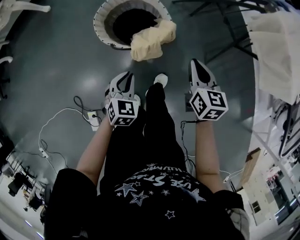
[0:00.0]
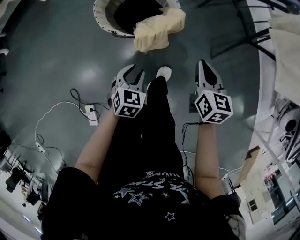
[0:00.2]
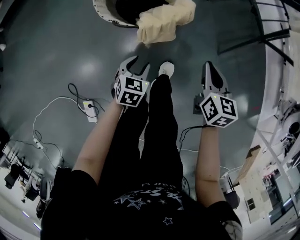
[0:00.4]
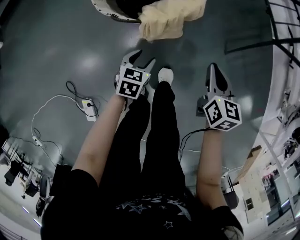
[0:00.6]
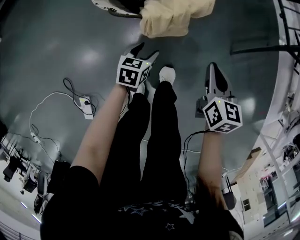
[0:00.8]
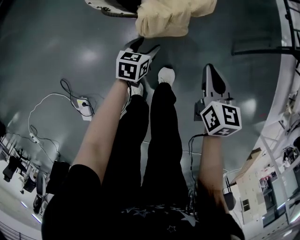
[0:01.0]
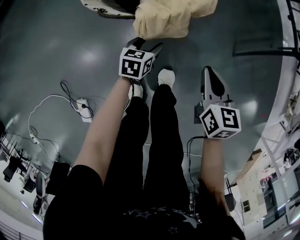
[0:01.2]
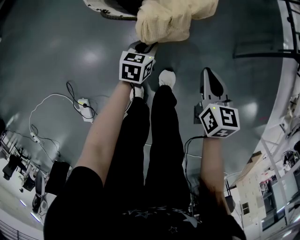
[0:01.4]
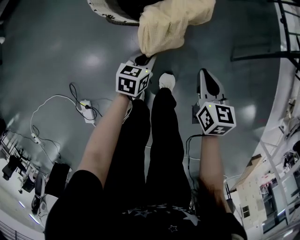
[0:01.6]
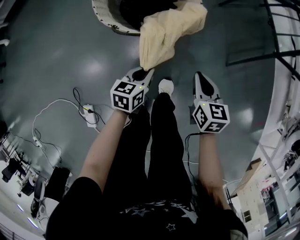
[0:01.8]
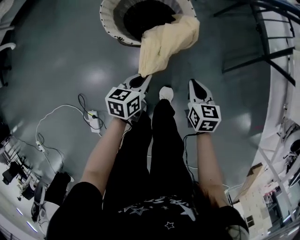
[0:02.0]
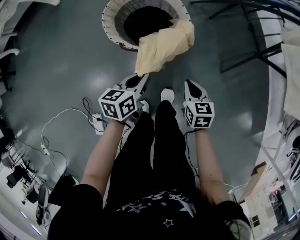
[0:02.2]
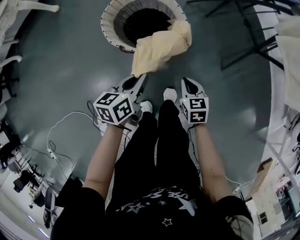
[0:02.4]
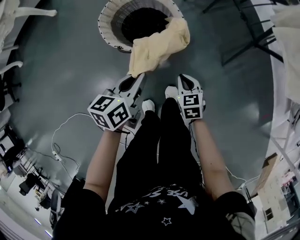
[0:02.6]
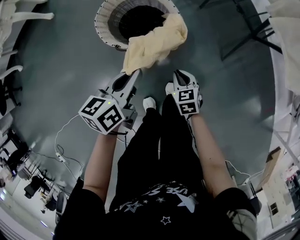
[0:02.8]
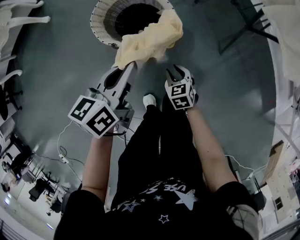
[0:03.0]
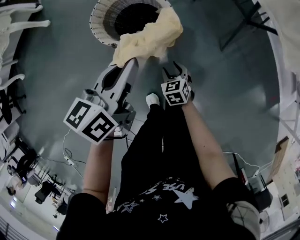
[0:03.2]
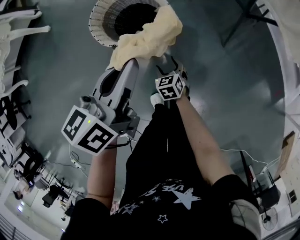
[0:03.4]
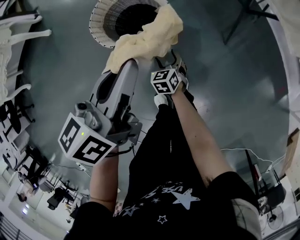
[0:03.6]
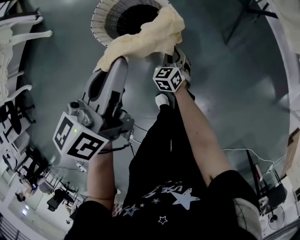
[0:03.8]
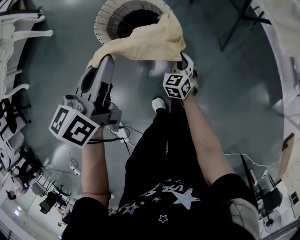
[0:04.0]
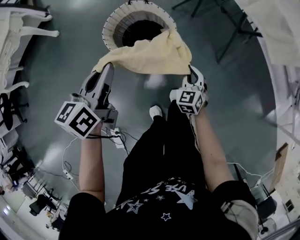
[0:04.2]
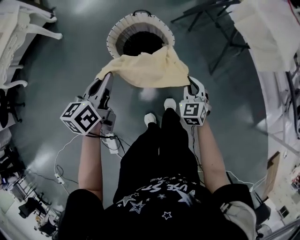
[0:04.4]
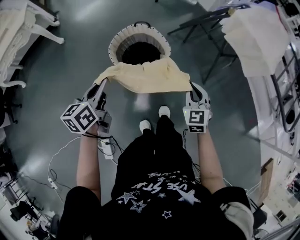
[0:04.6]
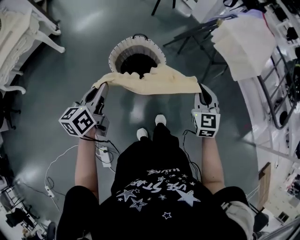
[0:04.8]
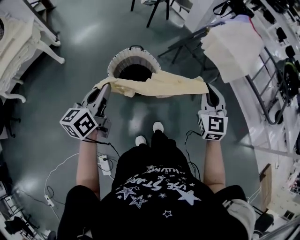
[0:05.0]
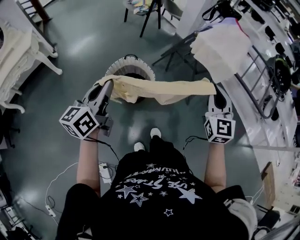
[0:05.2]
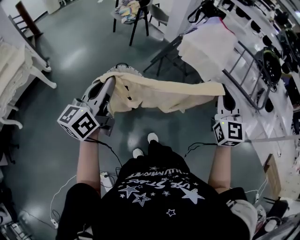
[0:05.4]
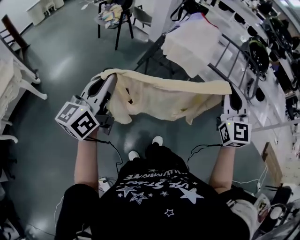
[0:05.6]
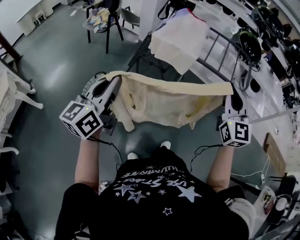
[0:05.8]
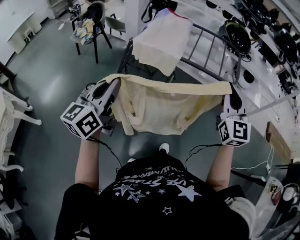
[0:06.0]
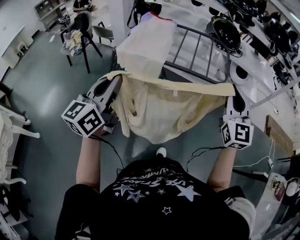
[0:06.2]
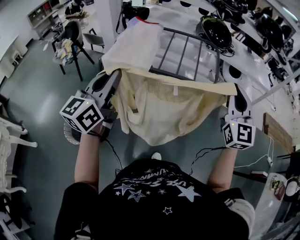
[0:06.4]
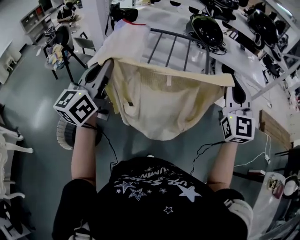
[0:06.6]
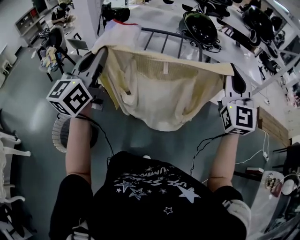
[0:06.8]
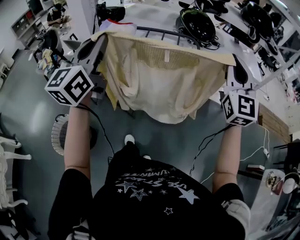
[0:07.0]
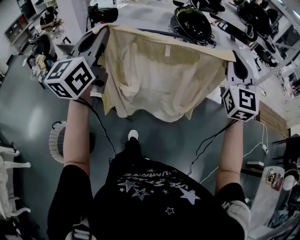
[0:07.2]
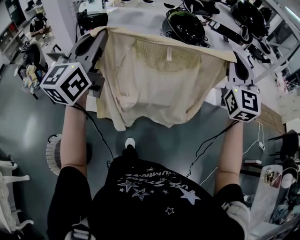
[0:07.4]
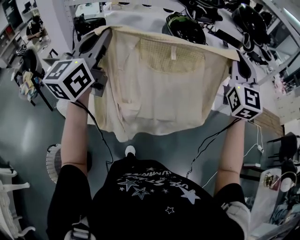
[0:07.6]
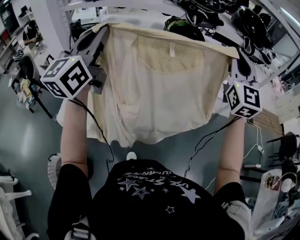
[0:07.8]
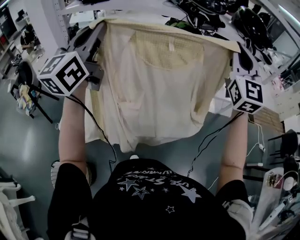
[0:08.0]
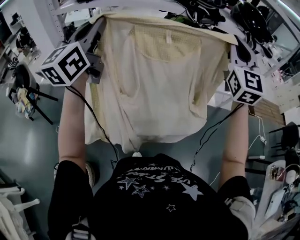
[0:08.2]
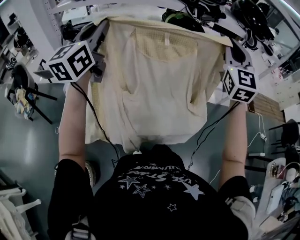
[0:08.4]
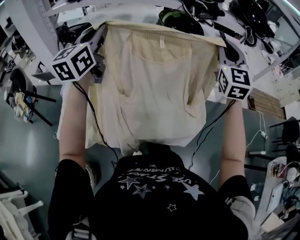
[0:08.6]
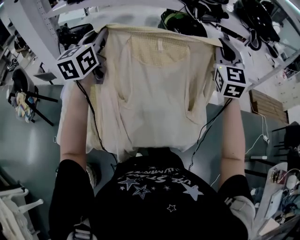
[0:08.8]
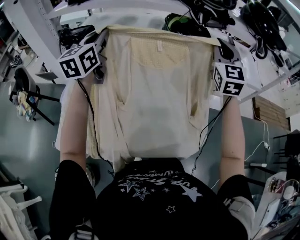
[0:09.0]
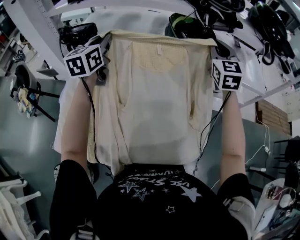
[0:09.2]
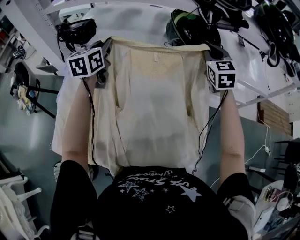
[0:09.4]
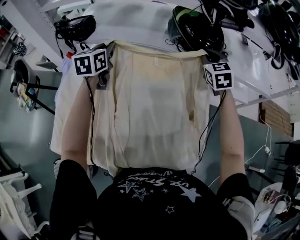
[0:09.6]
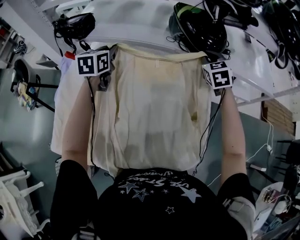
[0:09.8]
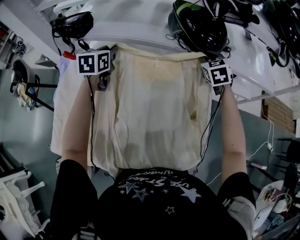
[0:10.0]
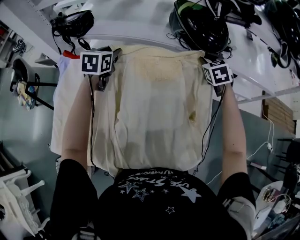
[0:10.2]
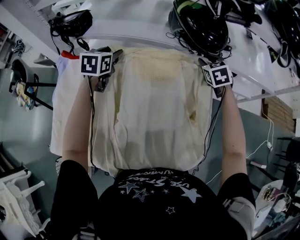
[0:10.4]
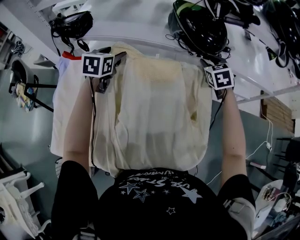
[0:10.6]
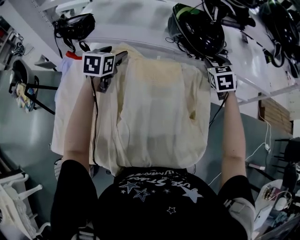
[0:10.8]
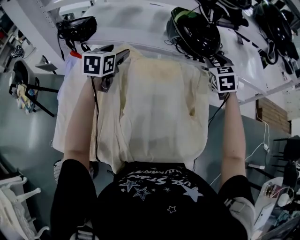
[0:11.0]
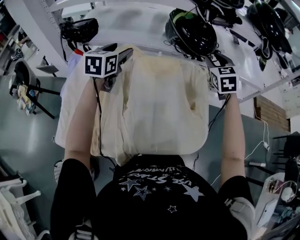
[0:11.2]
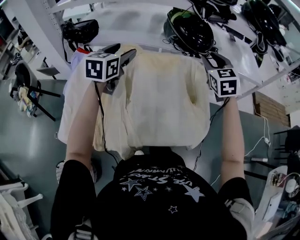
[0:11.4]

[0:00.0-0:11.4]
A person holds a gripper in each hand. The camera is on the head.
0:00.0 to 0:01.4: Both grippers travel together downward, roughly 30 cm. The left gripper swivels roughly 40 degrees, and opens, then closes once more.
0:01.4 to 0:02.8: The left gripper goes about 40 cm upward, and turns by about 20 degrees, while the right gripper moves upward and to the left, about 10 cm.
0:02.8 to 0:04.2: The left gripper moves upward and to the left, about 15 cm, while the right gripper shifts approximately 10 cm upward, swivels some 30 degrees, and opens, then closes once more.
0:04.2 to 0:05.6: The right gripper is displaced upward by approximately 60 cm, and tips its fingers upward by roughly 40 degrees; the left gripper moves upward, roughly 35 cm, and changes its angle by about 40 degrees.
0:05.6 to 0:07.2: Both grippers are carried to the right and forward, approximately 50 cm. The right gripper changes its angle by approximately 30 degrees, while the left gripper changes its angle by roughly 30 degrees.
0:07.2 to 0:08.6: Both grippers travel together forward, about 30 cm.
0:08.6 to 0:10.0: The two grippers go roughly 35 cm downward and forward. The left gripper points its fingers roughly 40 degrees further downward. Meanwhile the right gripper points its fingers roughly 40 degrees further downward.
0:10.0 to 0:11.4: Both grippers move backward and upward, about 20 cm. The left gripper opens, while the right gripper opens.

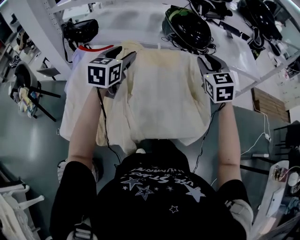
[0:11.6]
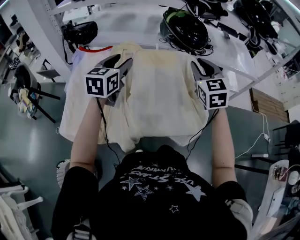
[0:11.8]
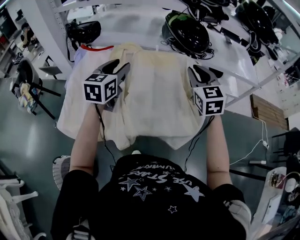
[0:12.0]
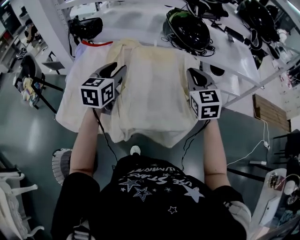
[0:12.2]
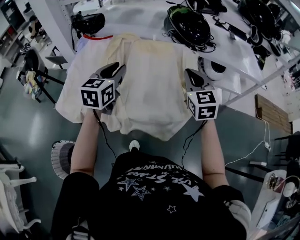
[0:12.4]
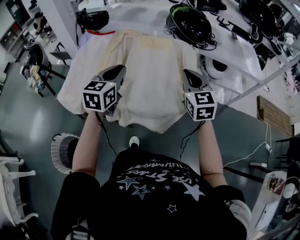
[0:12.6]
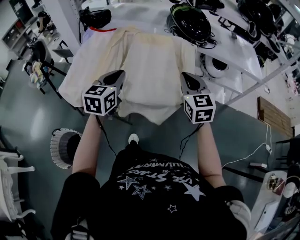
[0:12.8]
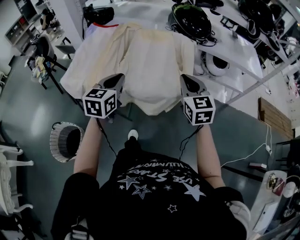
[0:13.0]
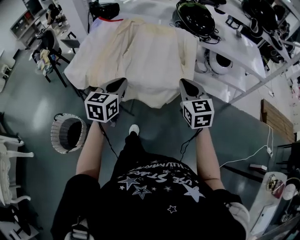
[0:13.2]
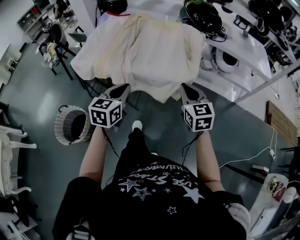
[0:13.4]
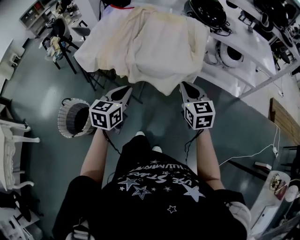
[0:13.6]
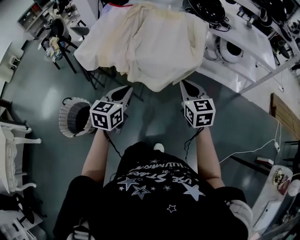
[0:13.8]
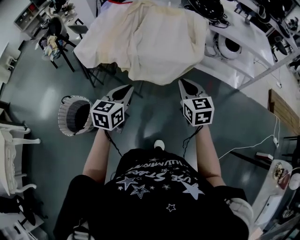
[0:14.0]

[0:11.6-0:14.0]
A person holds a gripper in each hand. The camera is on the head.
0:11.6 to 0:12.8: The two grippers go approximately 25 cm backward. The right gripper closes, while the left gripper closes its fingers.
0:12.8 to 0:14.0: The left gripper moves backward, about 25 cm. Meanwhile the right gripper goes approximately 20 cm backward and downward.

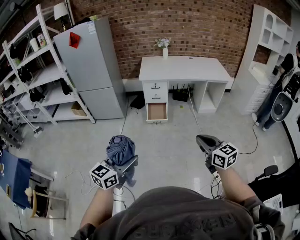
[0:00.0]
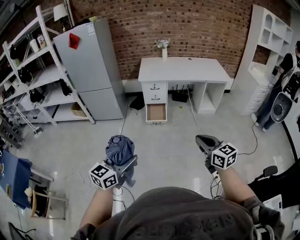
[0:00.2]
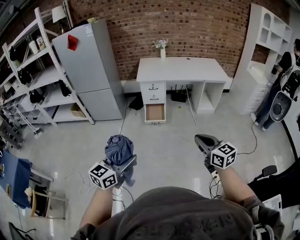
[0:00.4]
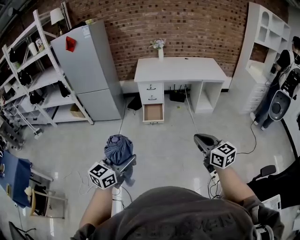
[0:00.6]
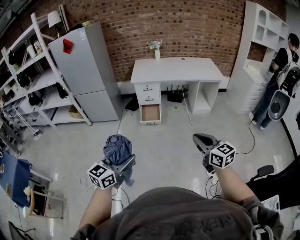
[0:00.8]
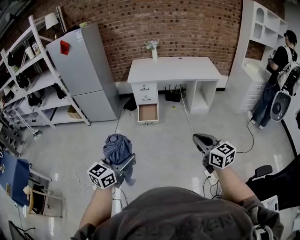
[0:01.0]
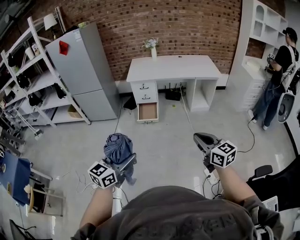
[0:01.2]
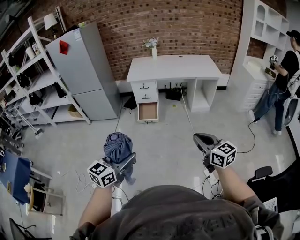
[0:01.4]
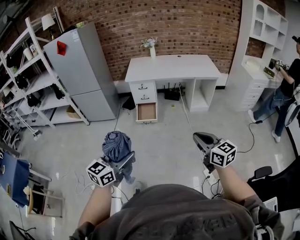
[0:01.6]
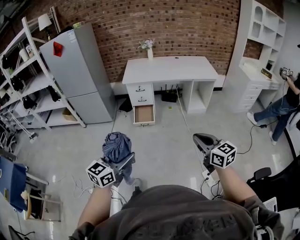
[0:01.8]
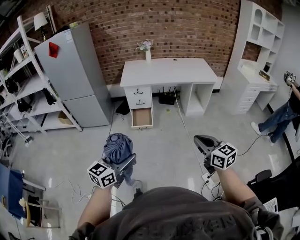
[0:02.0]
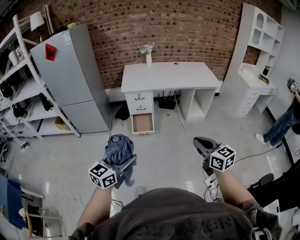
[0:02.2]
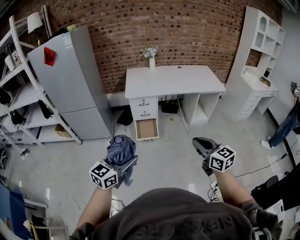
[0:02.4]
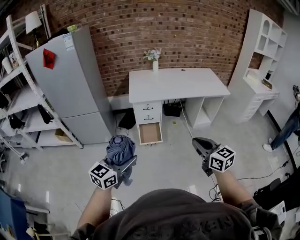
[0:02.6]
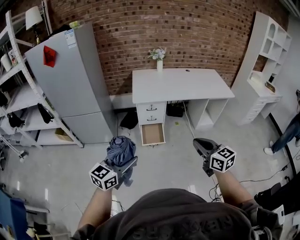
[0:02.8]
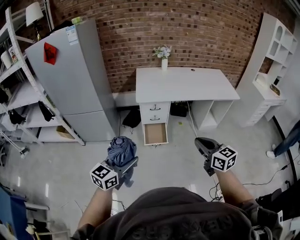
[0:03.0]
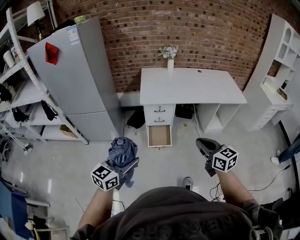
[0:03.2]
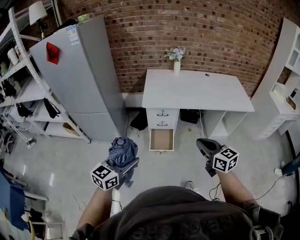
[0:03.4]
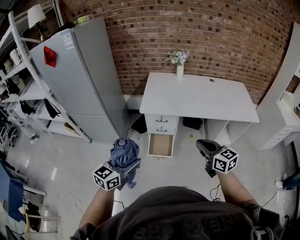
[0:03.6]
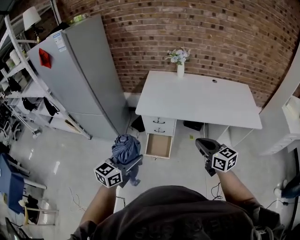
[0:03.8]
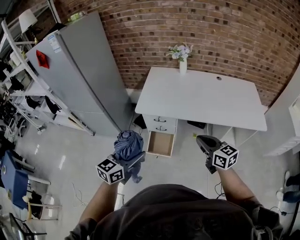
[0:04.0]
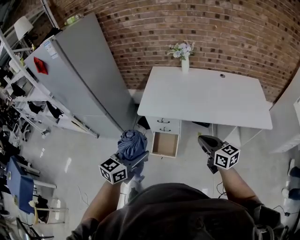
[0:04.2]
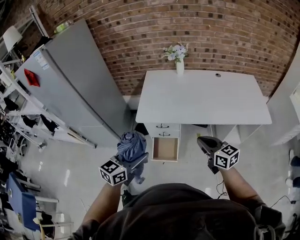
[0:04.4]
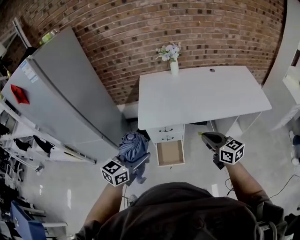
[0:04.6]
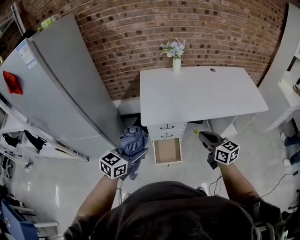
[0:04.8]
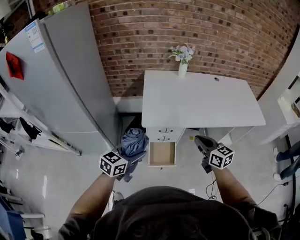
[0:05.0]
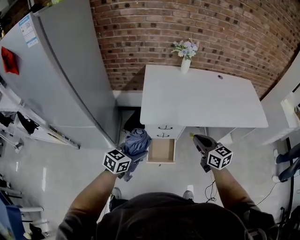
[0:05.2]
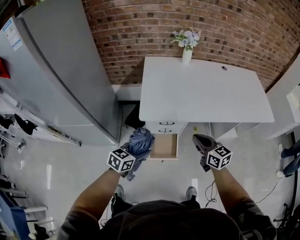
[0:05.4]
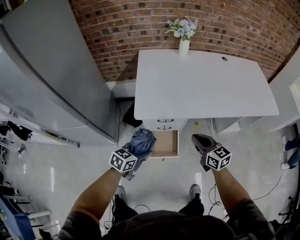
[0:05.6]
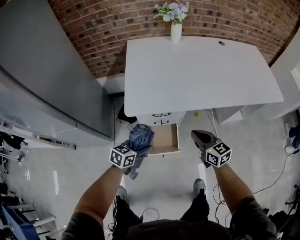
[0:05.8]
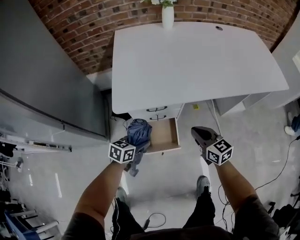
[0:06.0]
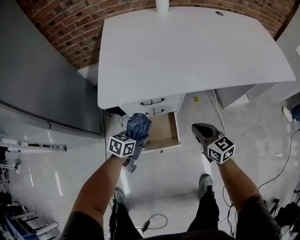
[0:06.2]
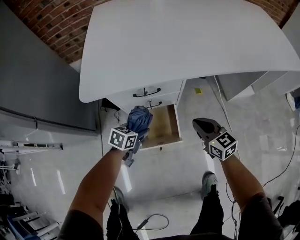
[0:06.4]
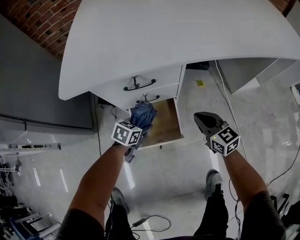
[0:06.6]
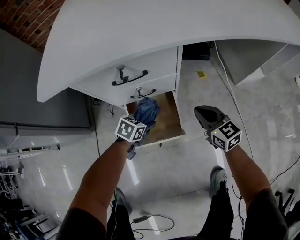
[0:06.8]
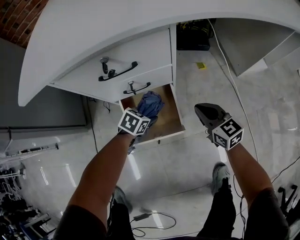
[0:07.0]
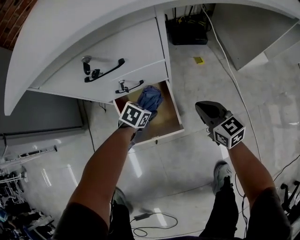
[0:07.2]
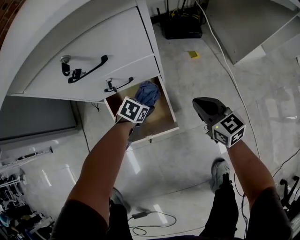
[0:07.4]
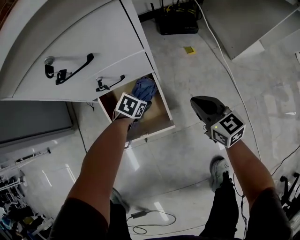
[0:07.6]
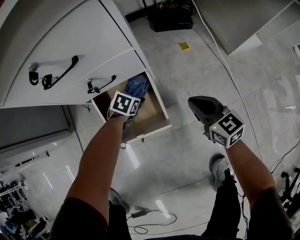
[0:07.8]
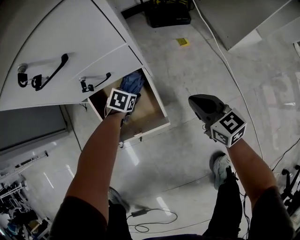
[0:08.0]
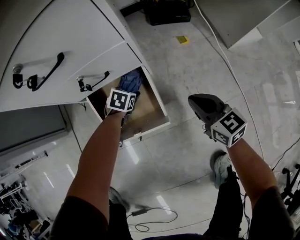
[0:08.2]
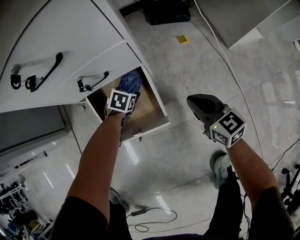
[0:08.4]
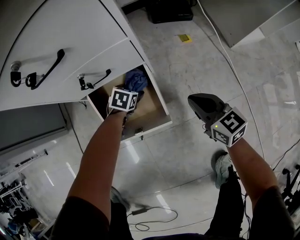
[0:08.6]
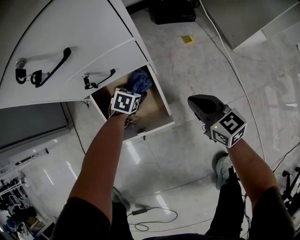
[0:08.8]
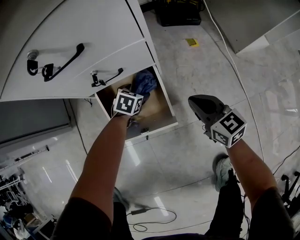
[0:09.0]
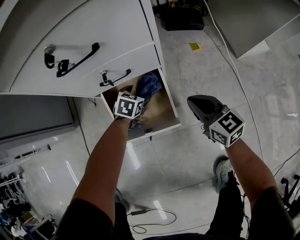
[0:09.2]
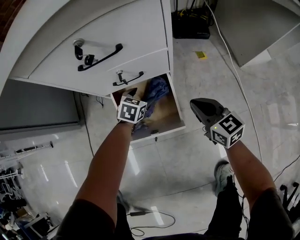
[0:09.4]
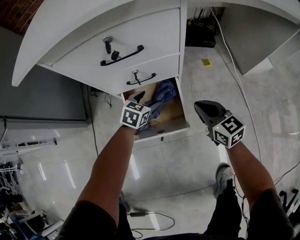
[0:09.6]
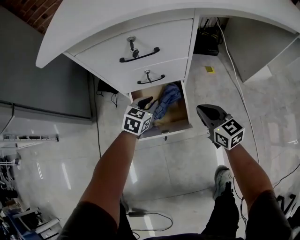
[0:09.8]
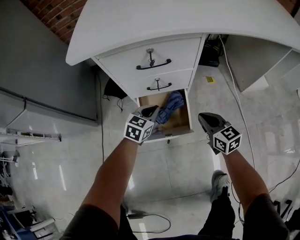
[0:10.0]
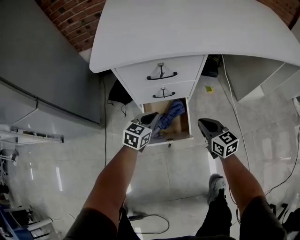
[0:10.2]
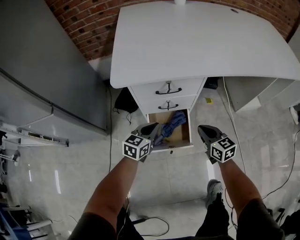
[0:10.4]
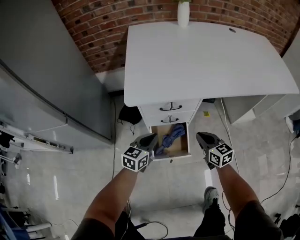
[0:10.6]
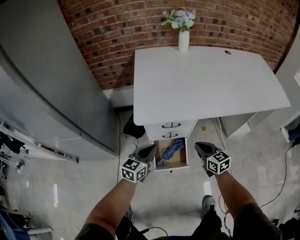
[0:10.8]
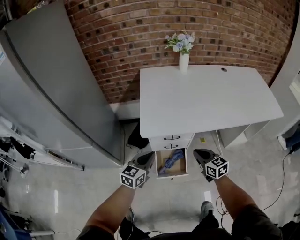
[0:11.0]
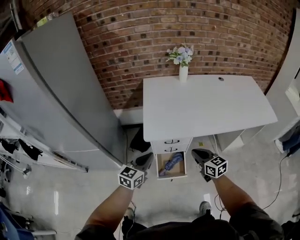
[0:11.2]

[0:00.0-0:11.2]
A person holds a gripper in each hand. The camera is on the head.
0:00.0 to 0:01.6: The grippers both shift to the right by roughly 15 cm.
0:01.6 to 0:03.2: The two grippers travel together, forward and to the left, approximately 50 cm.
0:03.2 to 0:04.8: The grippers both shift forward by roughly 35 cm.
0:04.8 to 0:06.4: Both grippers travel together downward, roughly 50 cm. The left gripper swivels approximately 30 degrees.
0:06.4 to 0:08.0: Both grippers move downward, about 25 cm. The left gripper rotates approximately 20 degrees.
0:08.0 to 0:09.6: The right gripper is displaced to the left and upward by some 10 cm. Meanwhile the left gripper shifts some 10 cm upward, and turns by about 20 degrees.
0:09.6 to 0:11.2: The grippers both shift upward by about 60 cm. The left gripper angles its fingers upward, by roughly 30 degrees, and closes its fingers.
